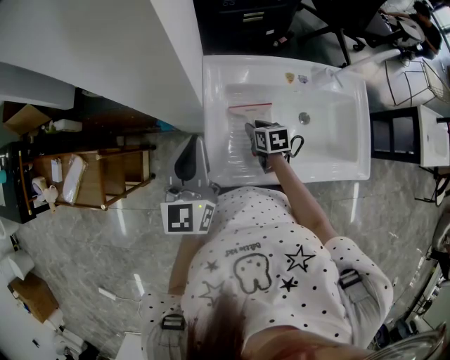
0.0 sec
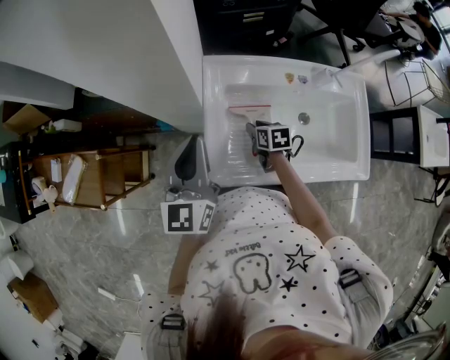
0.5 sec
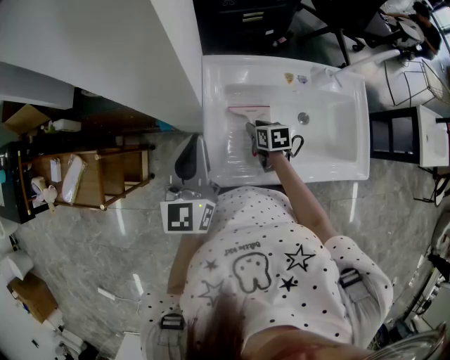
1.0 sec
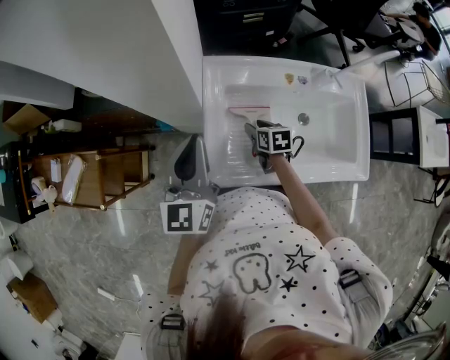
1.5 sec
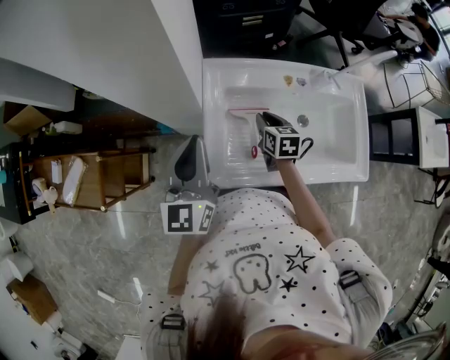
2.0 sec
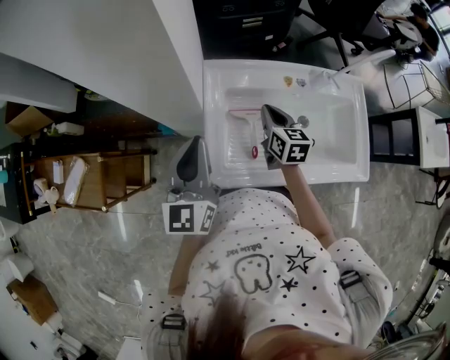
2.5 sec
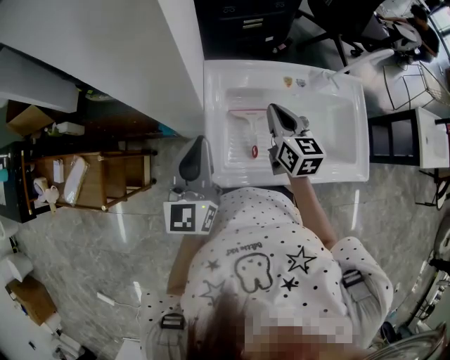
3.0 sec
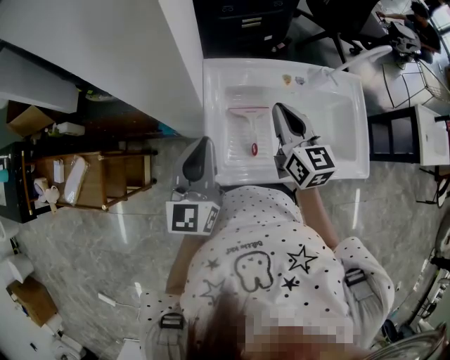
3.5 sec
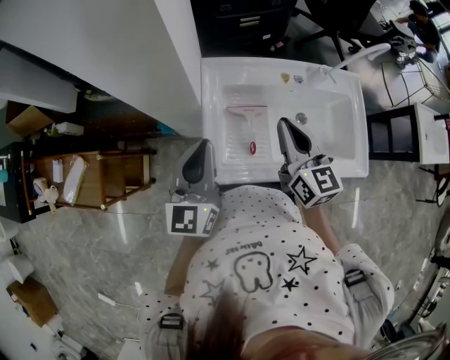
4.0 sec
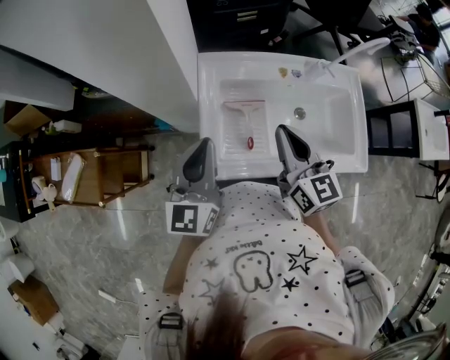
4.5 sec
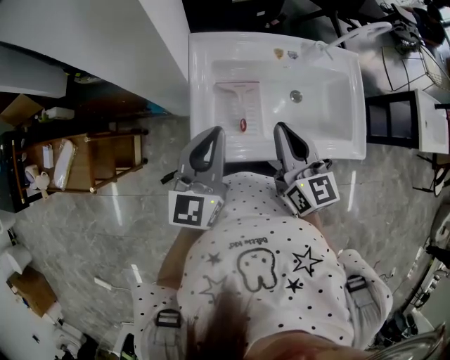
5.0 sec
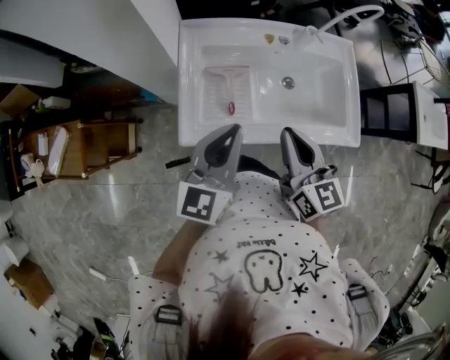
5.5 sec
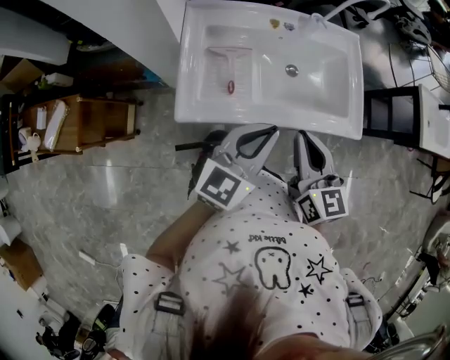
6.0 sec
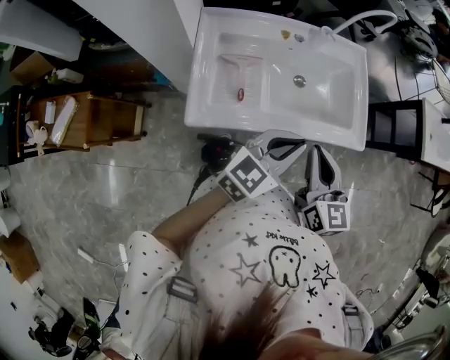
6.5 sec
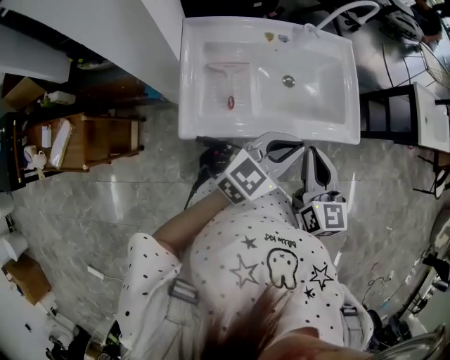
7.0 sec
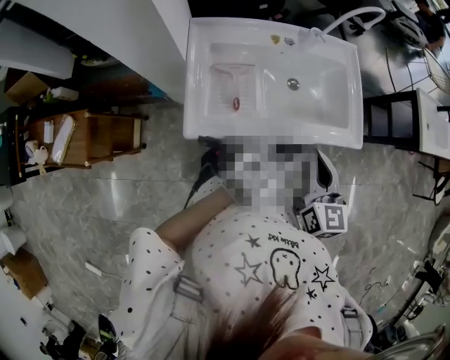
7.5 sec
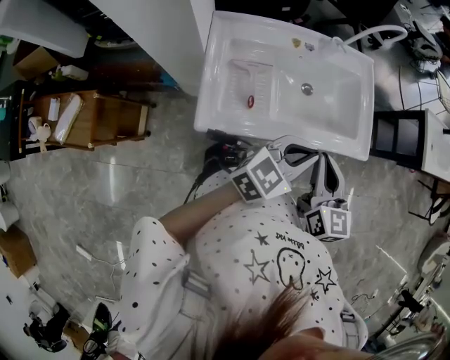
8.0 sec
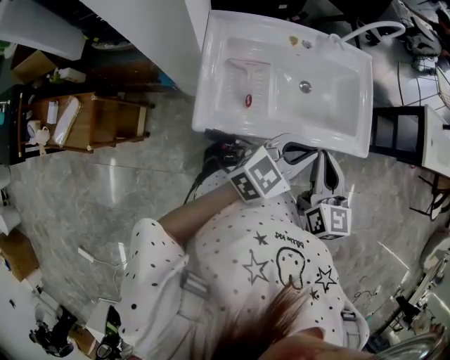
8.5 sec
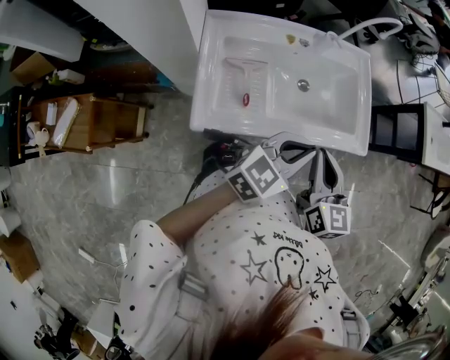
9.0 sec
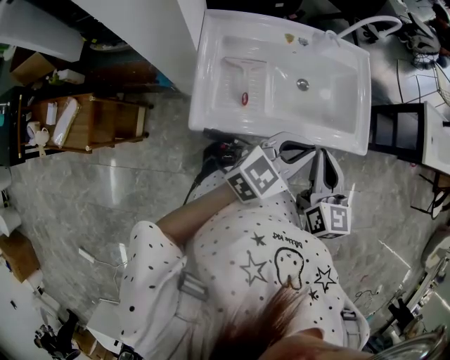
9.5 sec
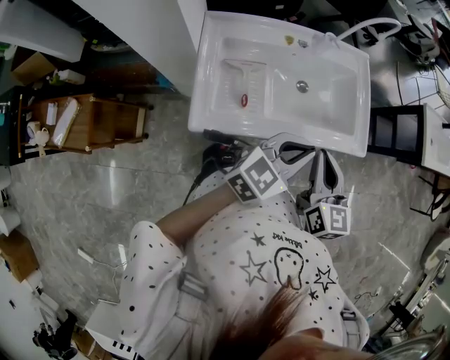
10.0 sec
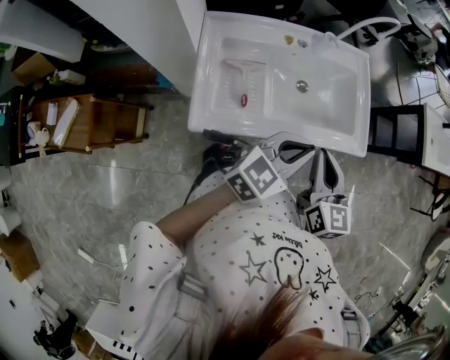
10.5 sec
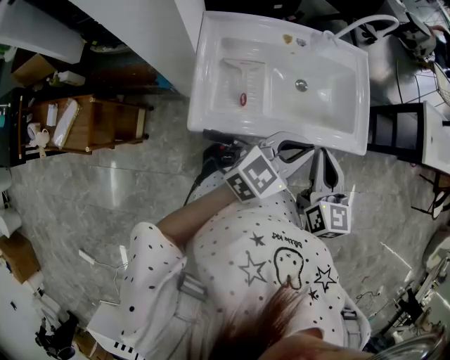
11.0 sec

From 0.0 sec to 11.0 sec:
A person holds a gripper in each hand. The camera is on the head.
From 0.0 sec to 2.0 sec: The right gripper shifts roughly 5 cm upward.
From 2.0 sec to 3.5 sec: The right gripper is displaced upward by roughly 20 cm, and swivels roughly 30 degrees.
From 3.5 sec to 5.5 sec: The left gripper goes some 15 cm to the right and backward, while the right gripper heads backward and to the right, covering approximately 20 cm.
From 5.5 sec to 7.5 sec: The left gripper changes place by about 20 cm, and swivels about 40 degrees, while the right gripper changes place by roughly 10 cm.
From 7.5 sec to 11.0 sec: Both grippers stay about where they are.

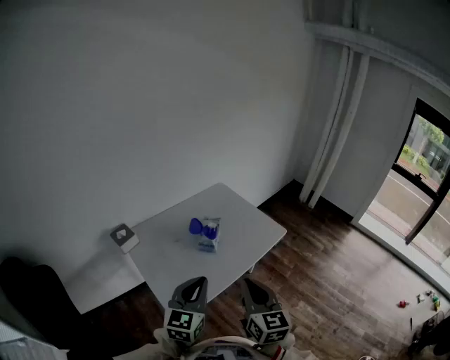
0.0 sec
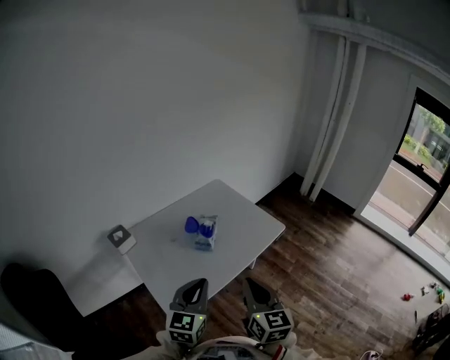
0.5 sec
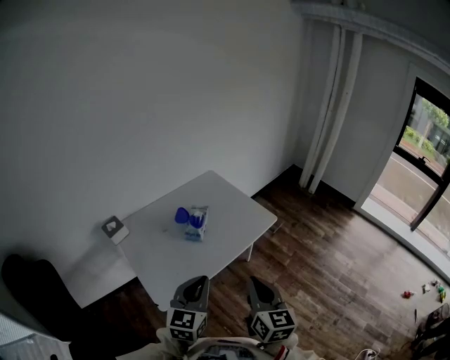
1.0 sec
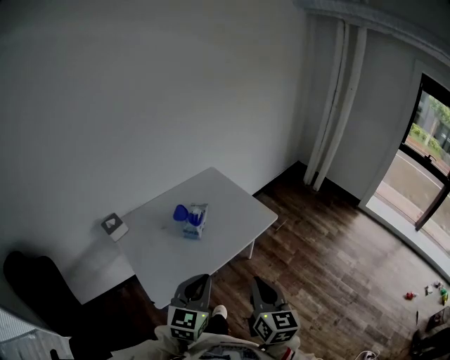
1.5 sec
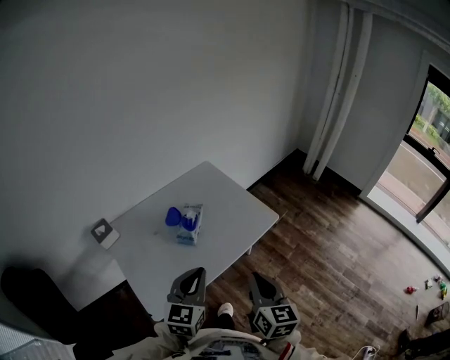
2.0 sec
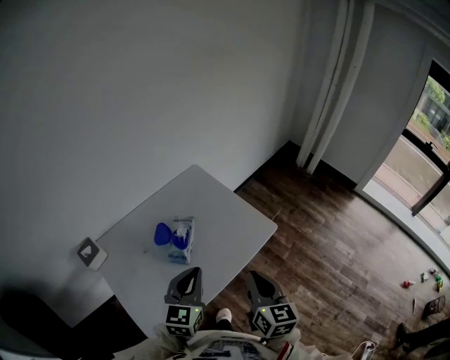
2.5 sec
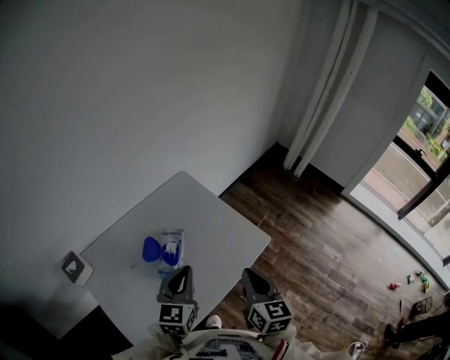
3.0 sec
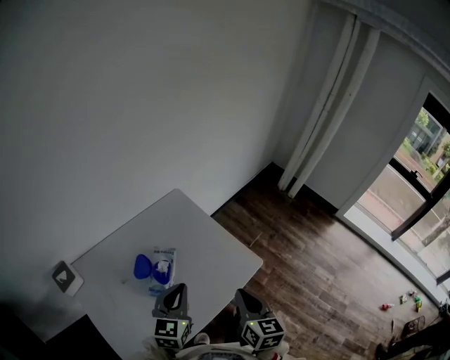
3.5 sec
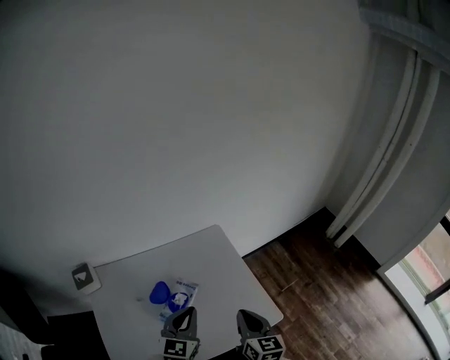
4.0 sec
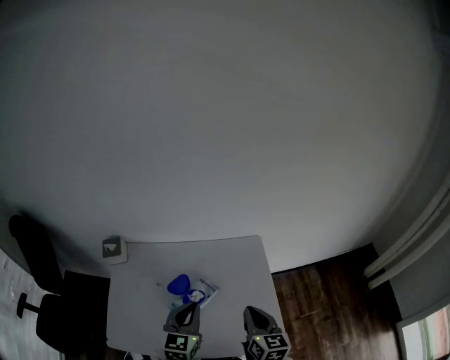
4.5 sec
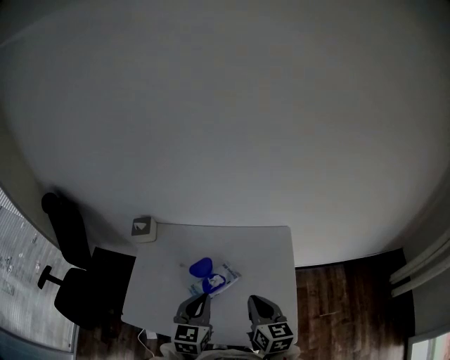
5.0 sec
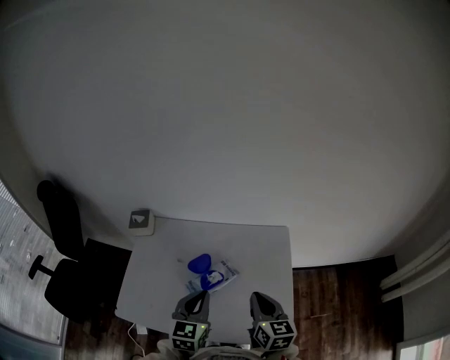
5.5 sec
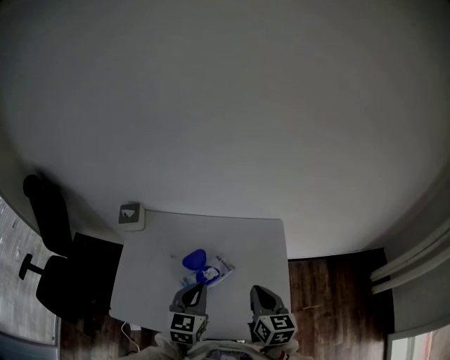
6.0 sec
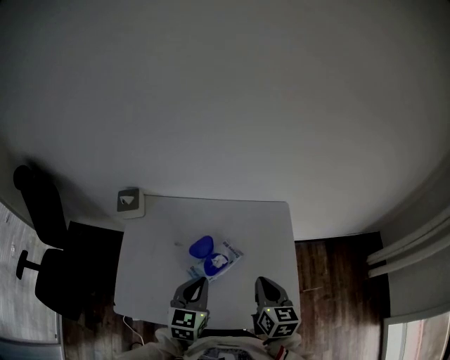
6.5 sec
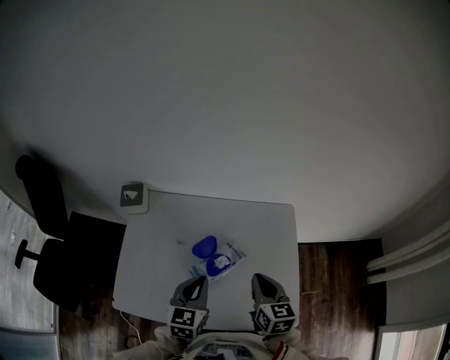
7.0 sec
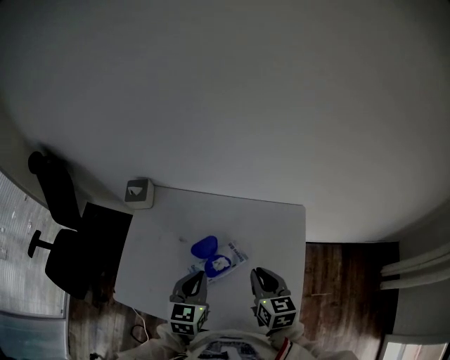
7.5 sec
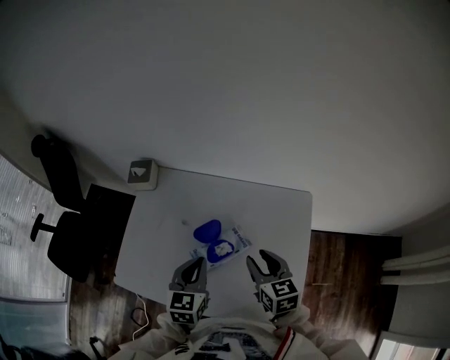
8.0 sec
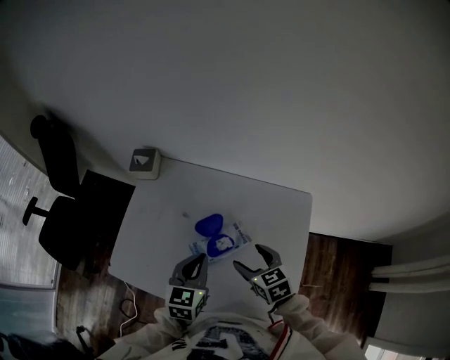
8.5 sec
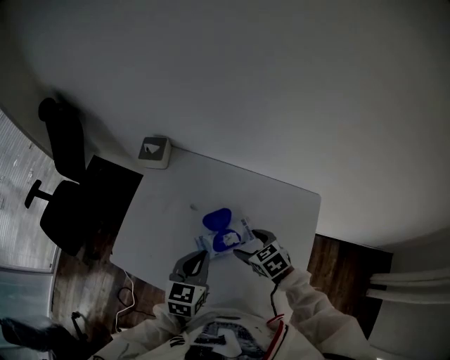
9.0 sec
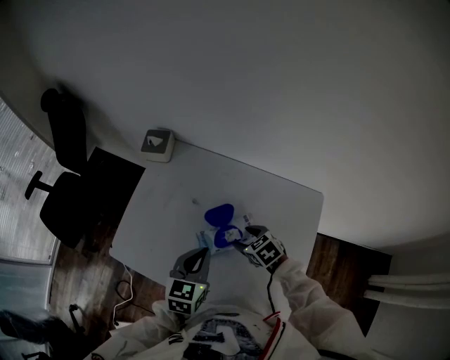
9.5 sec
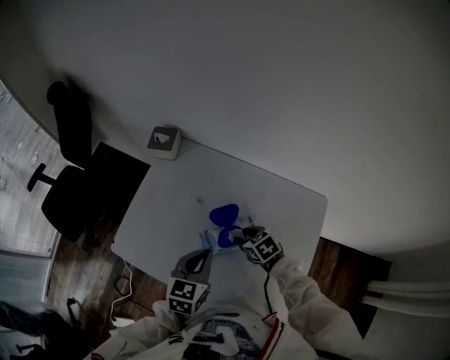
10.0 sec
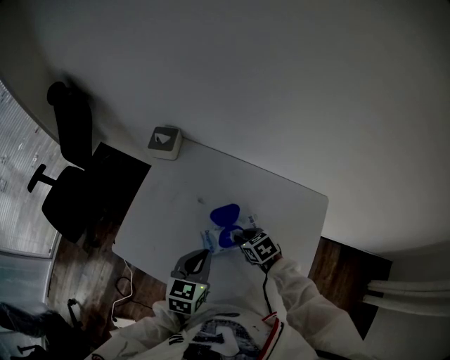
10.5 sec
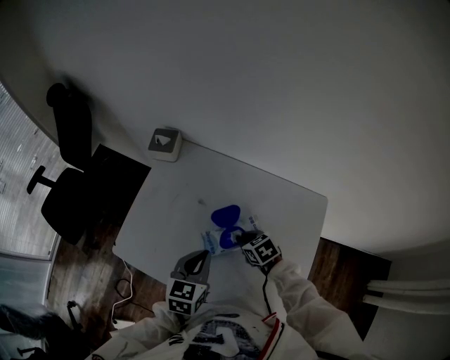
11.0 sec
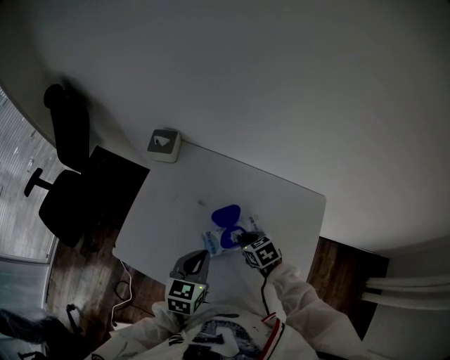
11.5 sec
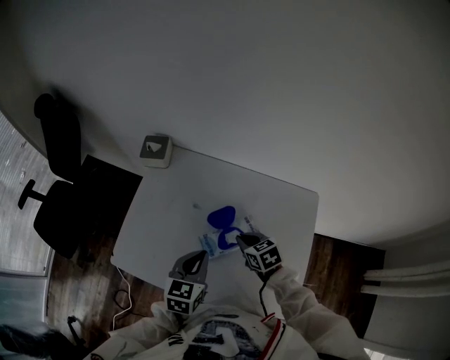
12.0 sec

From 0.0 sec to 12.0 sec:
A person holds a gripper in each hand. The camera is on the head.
From 0.0 sec to 2.0 sec: The left gripper travels to the right and forward by approximately 15 cm; the right gripper moves to the right, forward and downward, about 15 cm.
From 2.0 sec to 4.0 sec: The two grippers go some 30 cm forward.
From 4.0 sec to 6.0 sec: The right gripper changes place by approximately 10 cm, and changes its angle by roughly 30 degrees, while the left gripper changes place by approximately 5 cm, and rotates some 30 degrees.
From 6.0 sec to 8.0 sec: The right gripper shifts approximately 10 cm forward and downward, rotates some 20 degrees, and opens, while the left gripper shifts by about 5 cm.
From 8.0 sec to 10.0 sec: The right gripper is displaced downward and to the left by about 15 cm, changes its angle by roughly 40 degrees, and opens, then closes again.
From 10.0 sec to 12.0 sec: The right gripper closes.

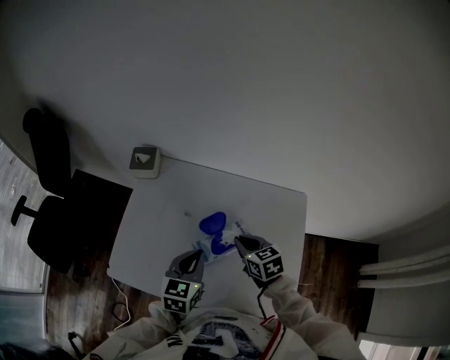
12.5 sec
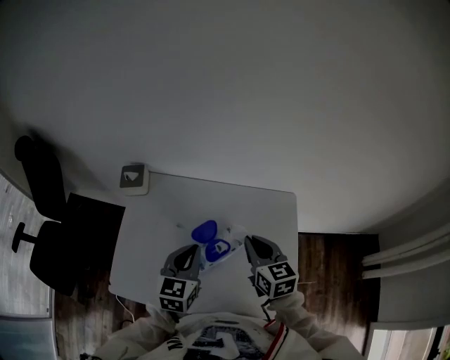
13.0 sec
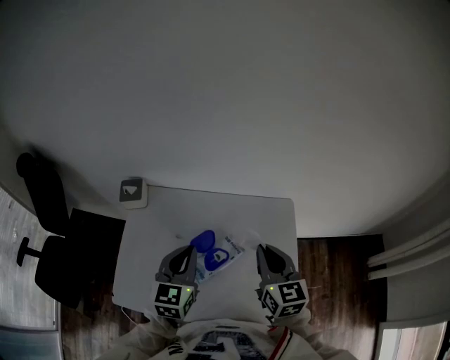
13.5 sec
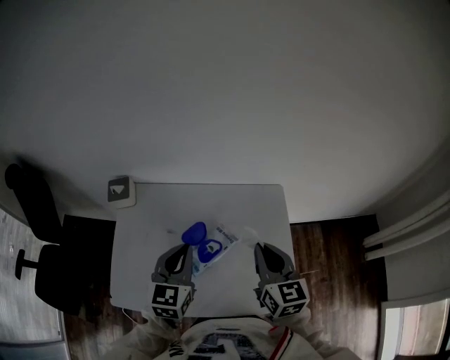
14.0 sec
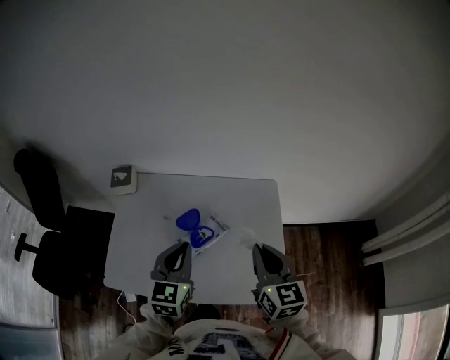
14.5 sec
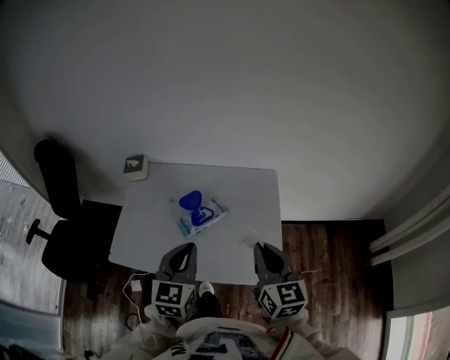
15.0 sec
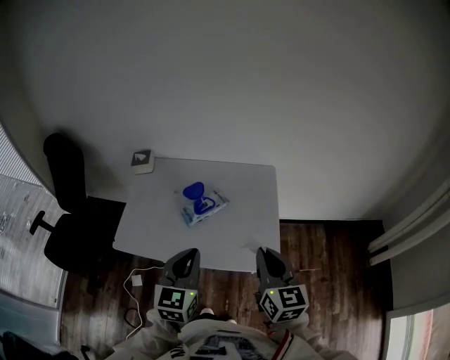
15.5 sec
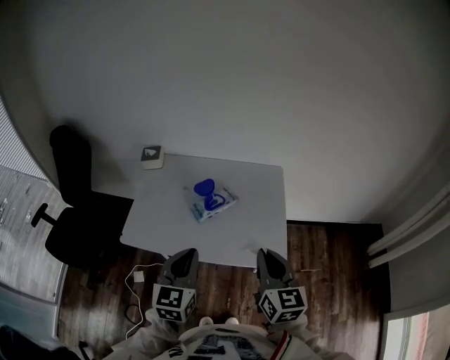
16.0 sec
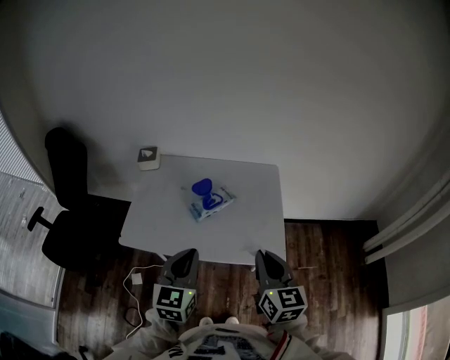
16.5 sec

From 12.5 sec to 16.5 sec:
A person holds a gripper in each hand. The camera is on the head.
From 12.5 sec to 14.5 sec: The right gripper goes about 25 cm upward, to the right and backward, and changes its angle by approximately 40 degrees. Meanwhile the left gripper moves upward, some 10 cm.
From 14.5 sec to 16.5 sec: Both grippers move backward, approximately 25 cm.
